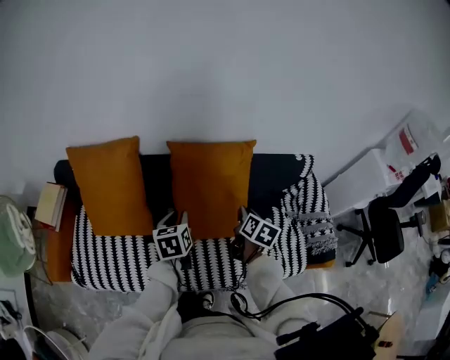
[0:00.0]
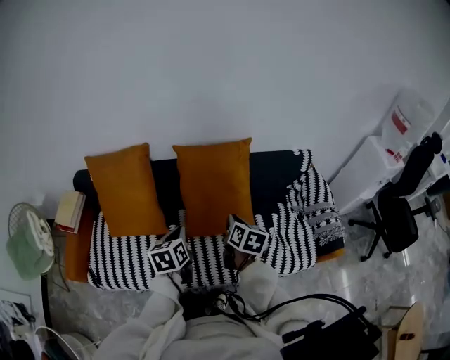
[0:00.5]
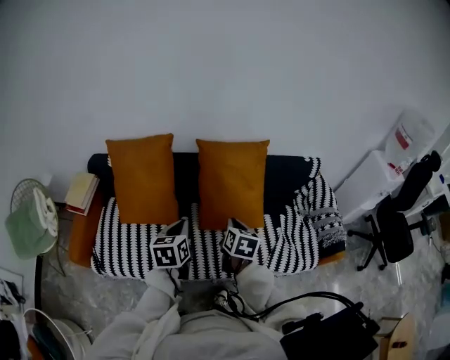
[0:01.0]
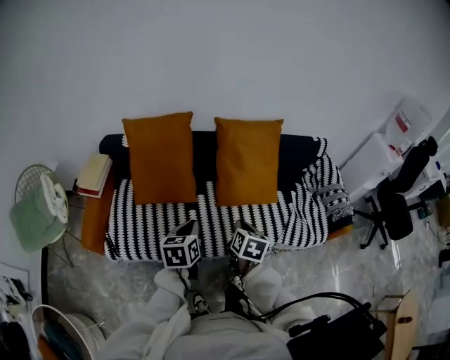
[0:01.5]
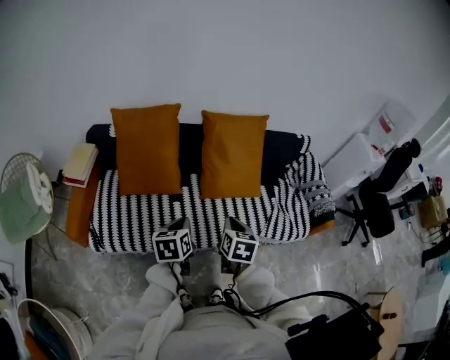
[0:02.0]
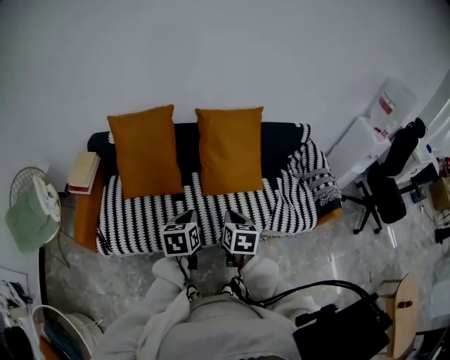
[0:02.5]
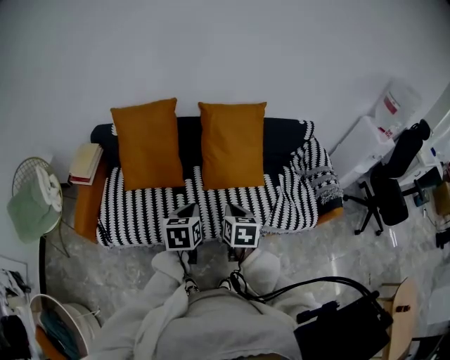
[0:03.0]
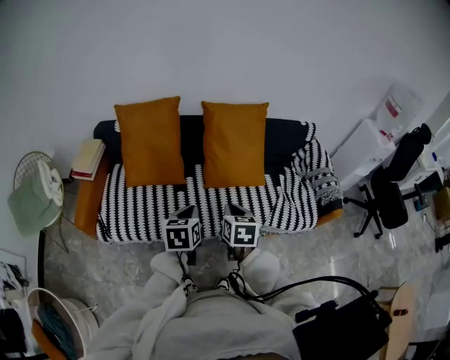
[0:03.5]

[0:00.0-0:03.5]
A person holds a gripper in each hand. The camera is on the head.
0:00.0 to 0:02.0: The right gripper heads backward and to the left, covering some 40 cm. Meanwhile the left gripper goes about 30 cm backward.
0:02.0 to 0:03.5: The left gripper travels to the right by about 5 cm.

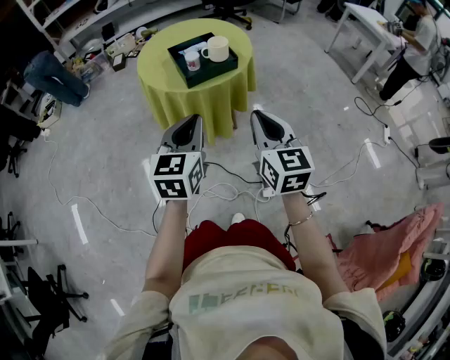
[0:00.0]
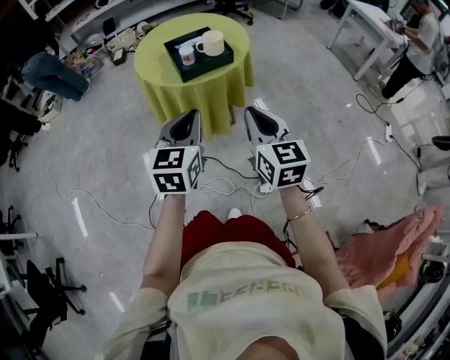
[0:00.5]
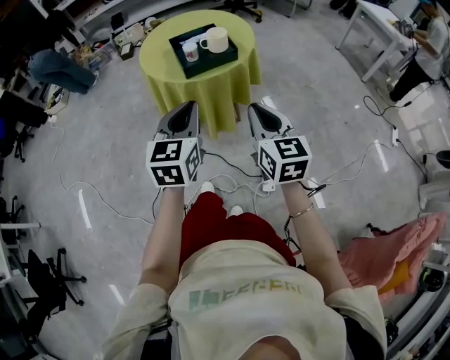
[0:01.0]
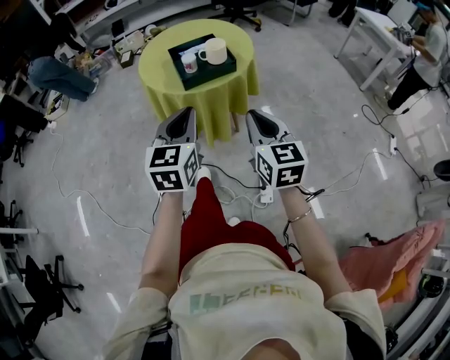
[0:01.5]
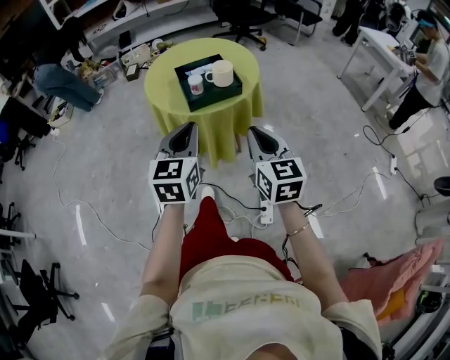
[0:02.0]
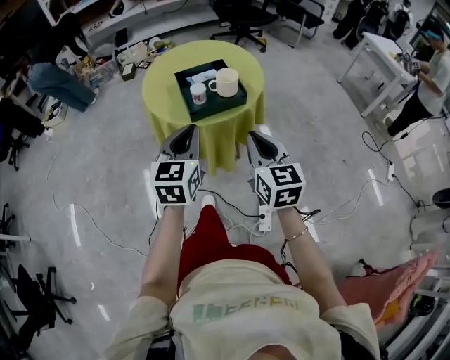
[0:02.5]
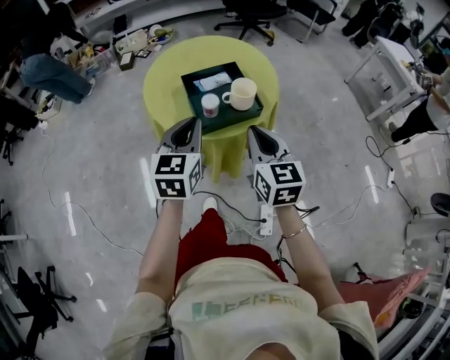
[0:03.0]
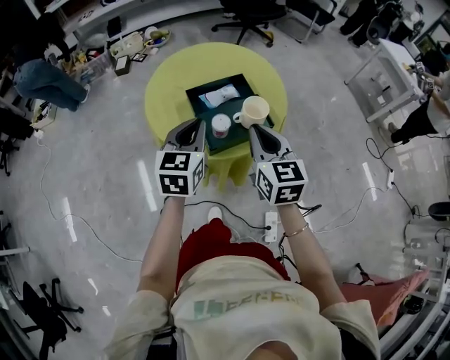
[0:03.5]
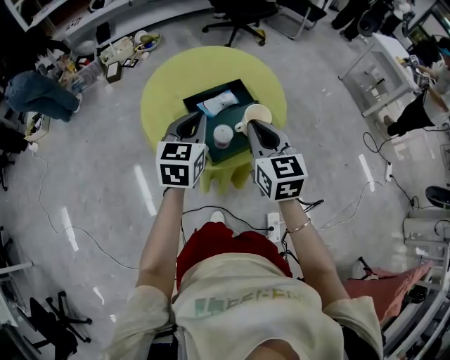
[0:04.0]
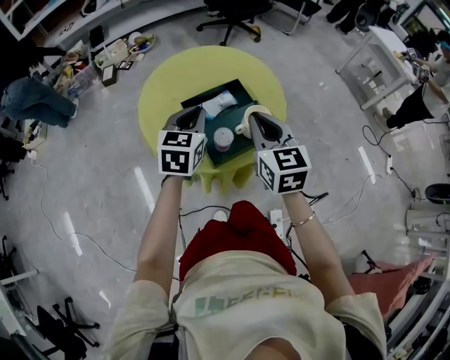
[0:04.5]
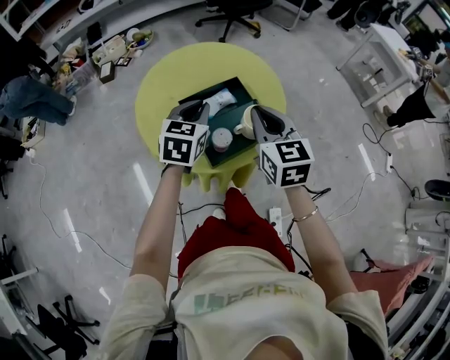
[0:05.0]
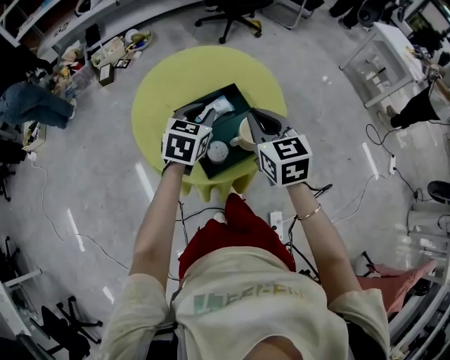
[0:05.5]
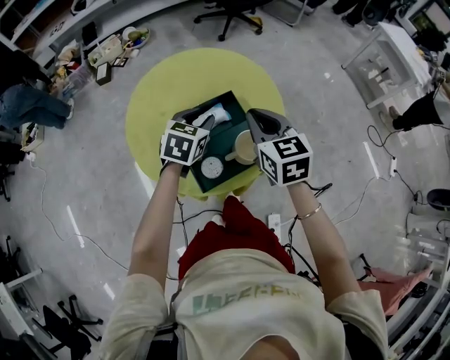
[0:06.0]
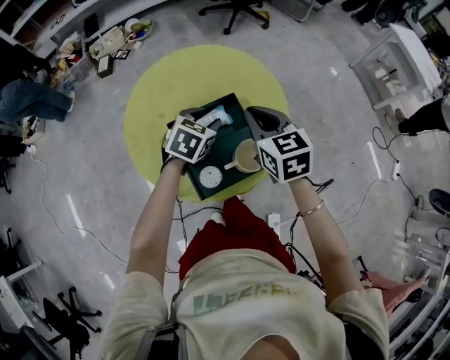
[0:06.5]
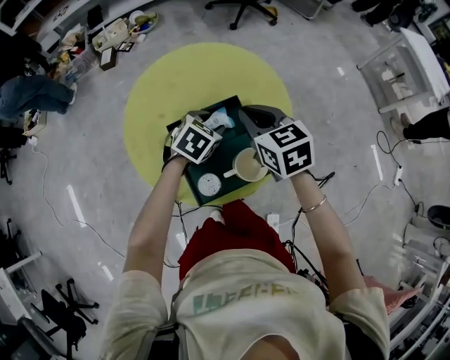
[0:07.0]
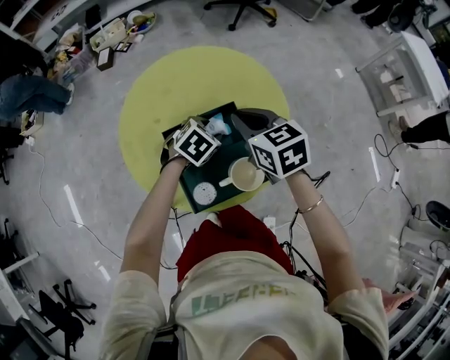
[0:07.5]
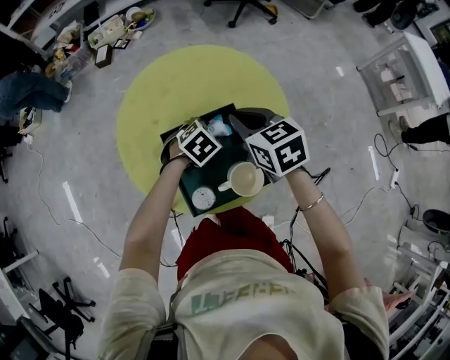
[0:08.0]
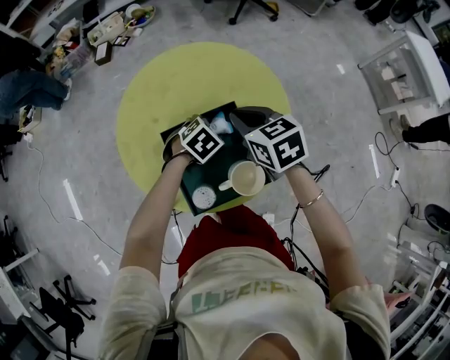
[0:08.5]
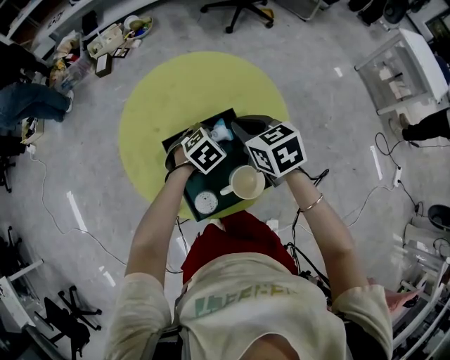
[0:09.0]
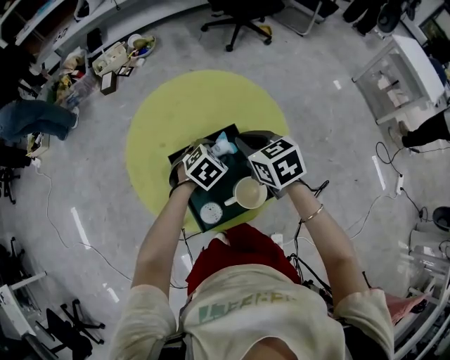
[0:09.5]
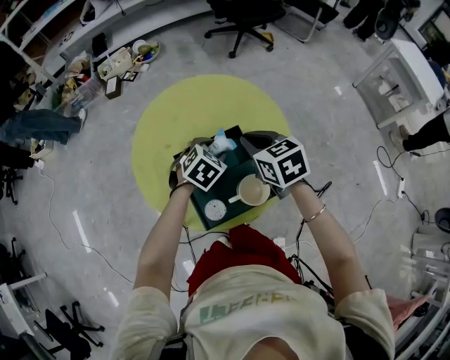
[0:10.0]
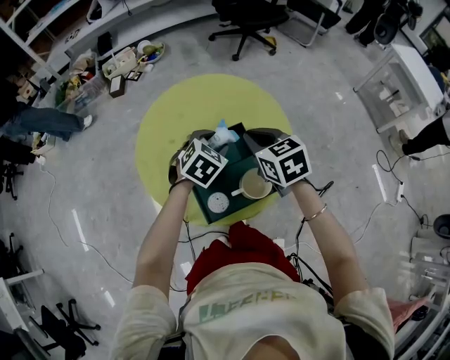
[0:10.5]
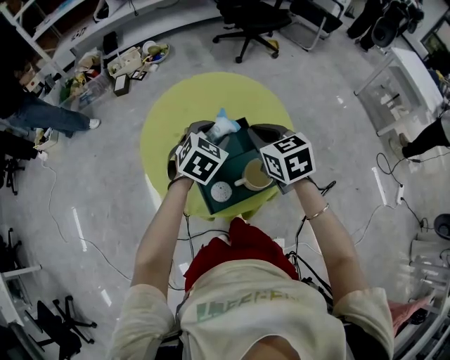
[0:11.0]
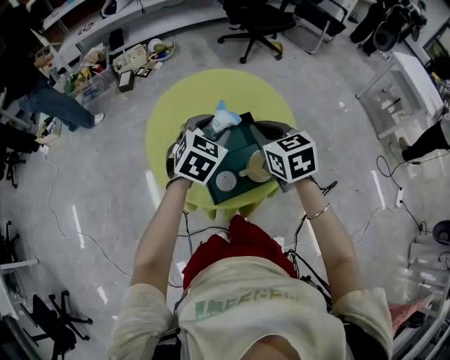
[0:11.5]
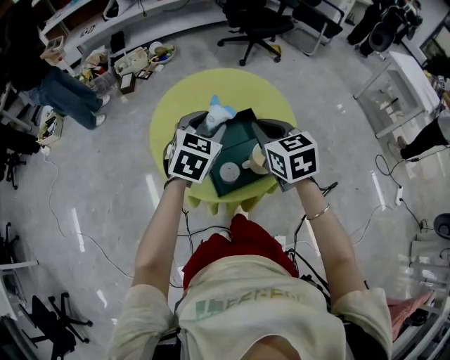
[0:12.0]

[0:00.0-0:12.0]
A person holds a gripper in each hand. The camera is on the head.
0:00.0 to 0:02.0: The grippers both shift forward by about 5 cm.
0:02.0 to 0:04.0: The grippers both shift forward by roughly 40 cm.
0:04.0 to 0:06.0: The left gripper moves forward and downward, approximately 20 cm, swivels roughly 20 degrees, and opens. The right gripper goes roughly 15 cm forward.
0:06.0 to 0:08.0: The right gripper goes about 15 cm forward and downward, and changes its angle by roughly 20 degrees. The left gripper goes roughly 15 cm downward and forward, changes its angle by some 30 degrees, and opens.
0:08.0 to 0:10.0: The left gripper moves upward, some 5 cm.
0:10.0 to 0:12.0: The right gripper is displaced backward and upward by roughly 15 cm; the left gripper goes approximately 20 cm upward, backward and to the left, and changes its angle by about 30 degrees.

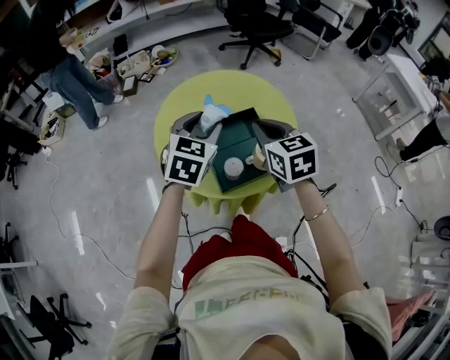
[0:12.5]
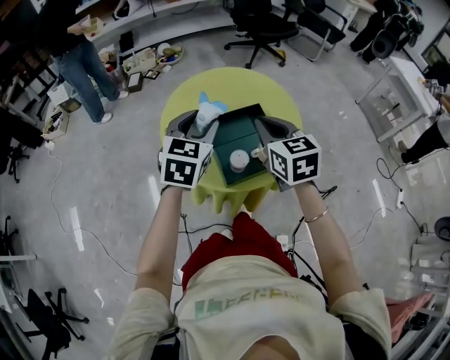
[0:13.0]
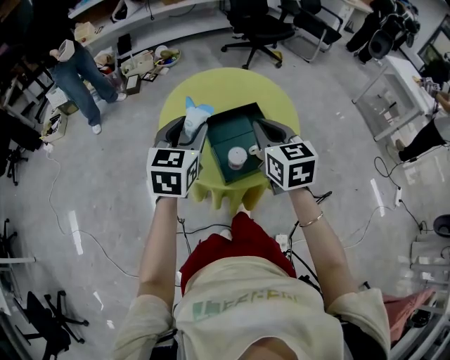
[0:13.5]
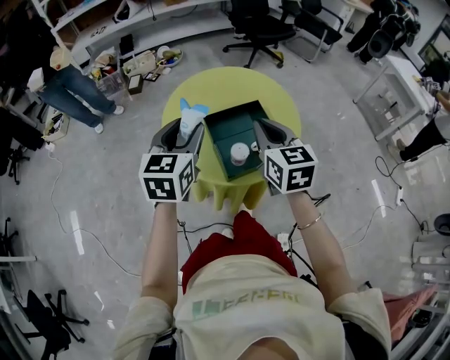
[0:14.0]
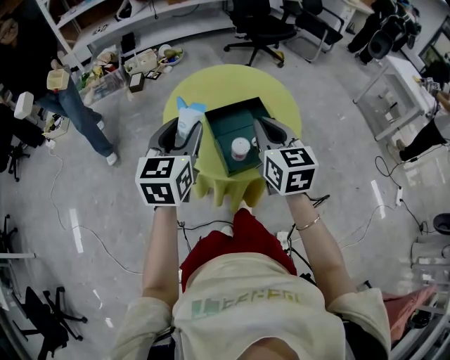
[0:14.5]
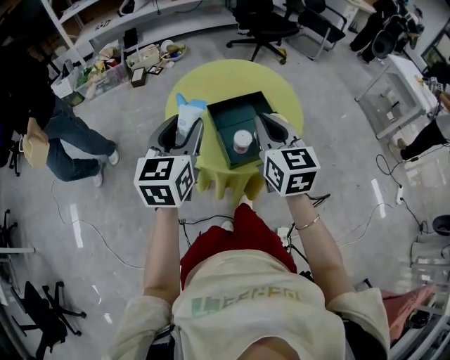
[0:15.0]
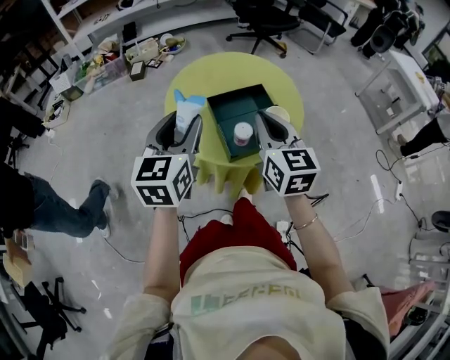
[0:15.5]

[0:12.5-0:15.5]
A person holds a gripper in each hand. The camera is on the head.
0:12.5 to 0:14.0: The right gripper heads backward, covering some 5 cm. Meanwhile the left gripper goes roughly 10 cm backward and to the left.
0:14.0 to 0:15.5: Both grippers move backward, about 5 cm.

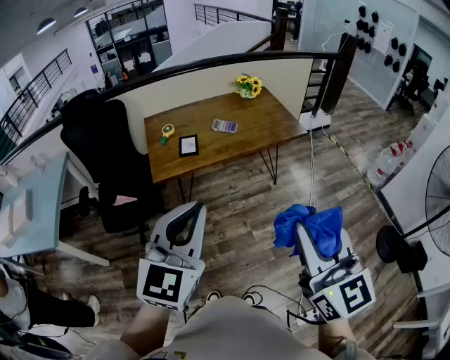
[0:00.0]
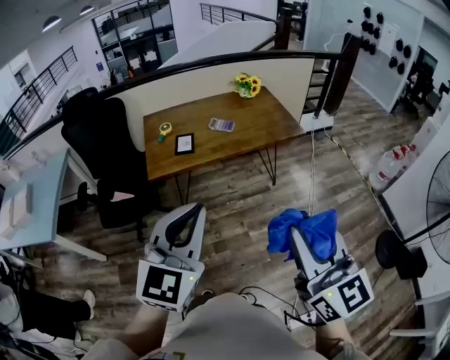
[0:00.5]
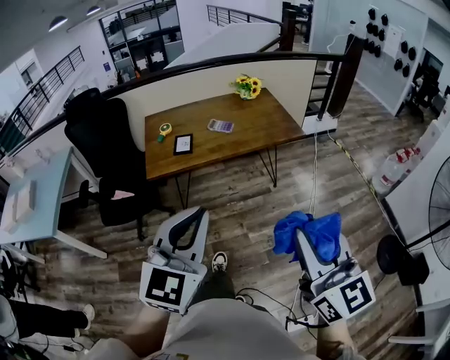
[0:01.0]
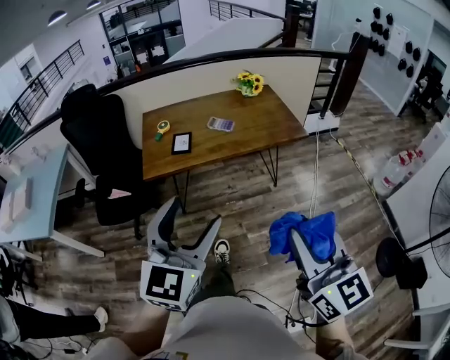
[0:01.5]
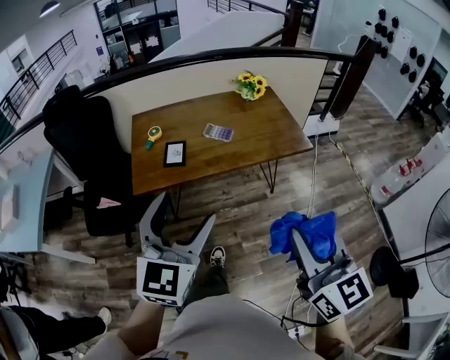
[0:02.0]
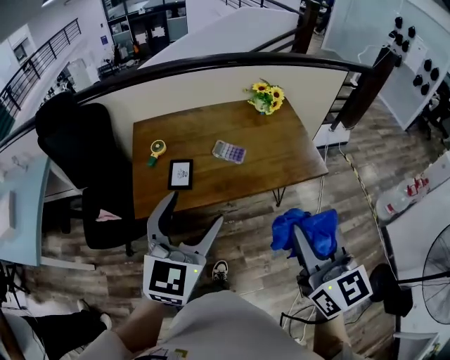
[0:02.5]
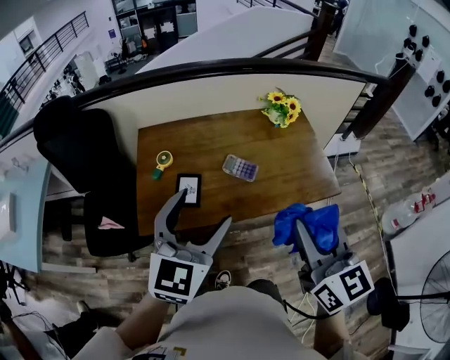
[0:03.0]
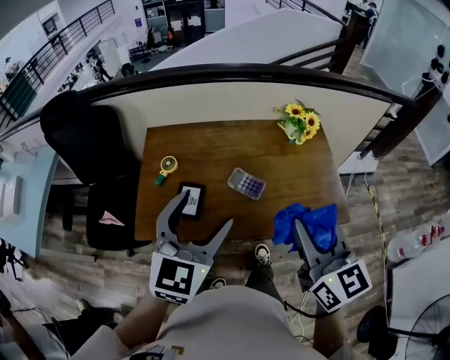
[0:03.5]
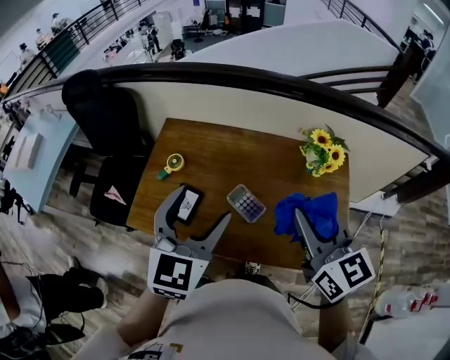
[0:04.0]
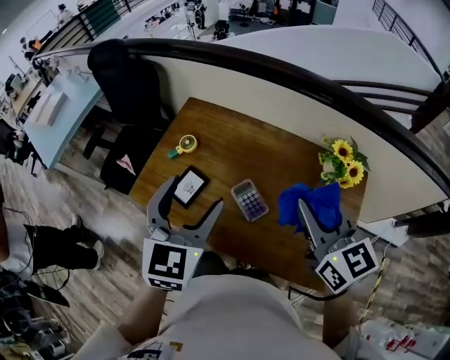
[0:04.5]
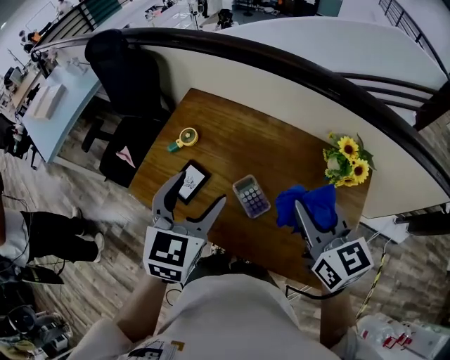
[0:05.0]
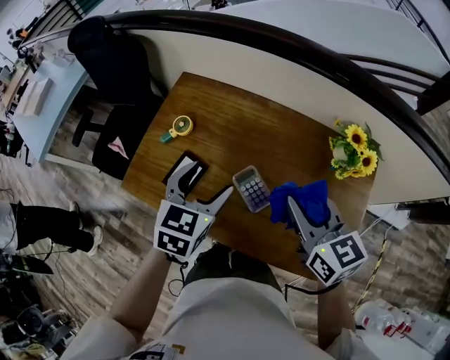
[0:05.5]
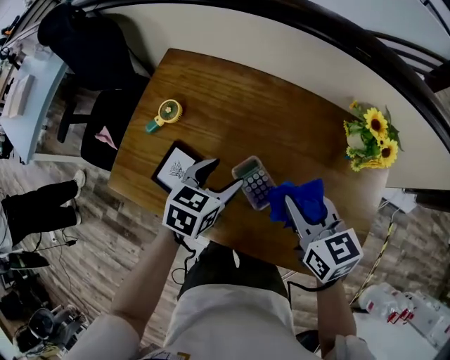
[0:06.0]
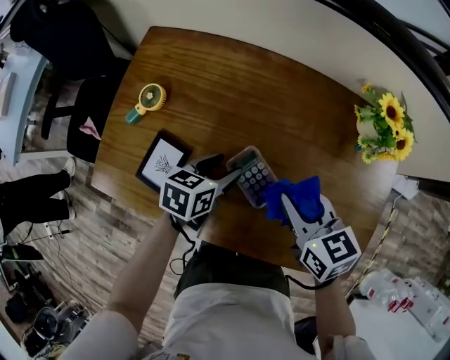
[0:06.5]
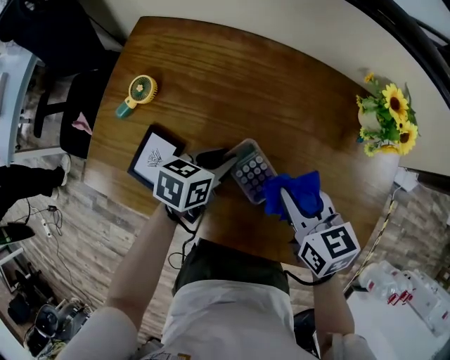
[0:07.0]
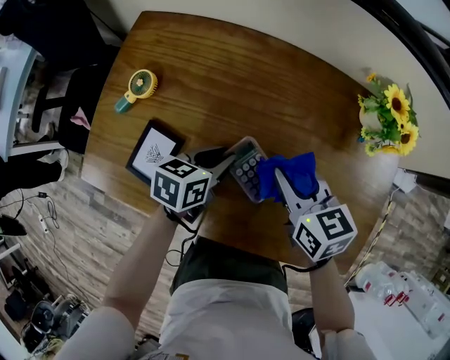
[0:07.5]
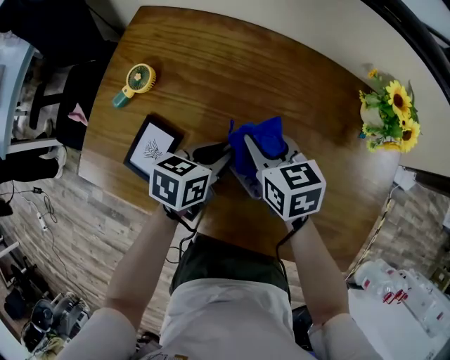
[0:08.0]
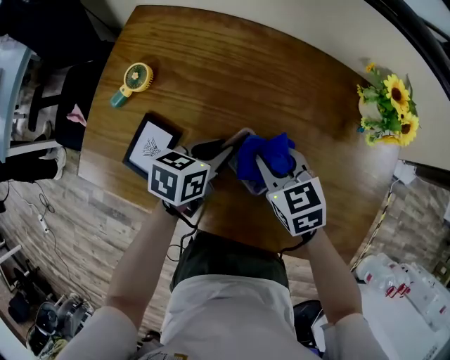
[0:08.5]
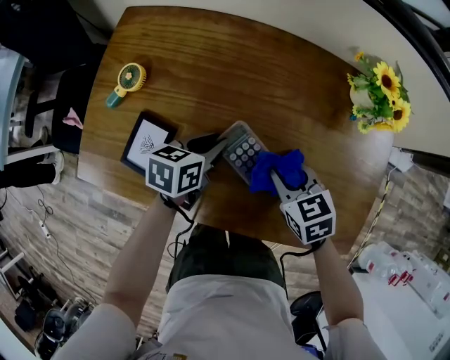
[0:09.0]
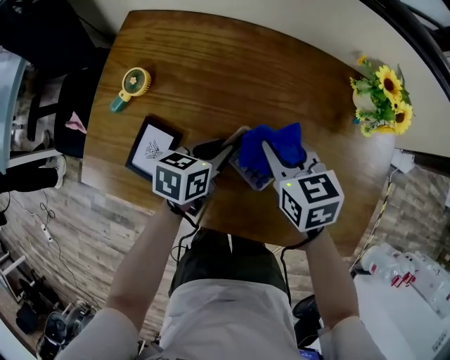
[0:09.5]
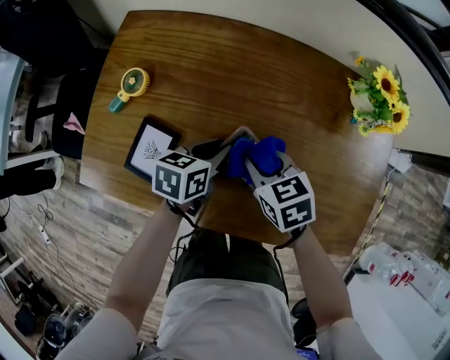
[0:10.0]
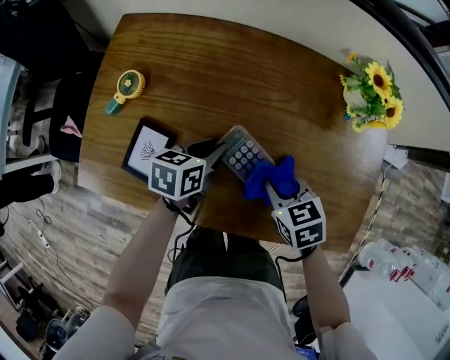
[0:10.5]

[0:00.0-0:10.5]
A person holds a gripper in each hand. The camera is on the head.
0:00.0 to 0:02.0: The right gripper moves forward, to the right and downward, approximately 20 cm; the left gripper travels forward by about 20 cm, and opens its fingers.
0:02.0 to 0:04.0: The two grippers travel together, roughly 50 cm. The left gripper swivels approximately 20 degrees. The right gripper rotates approximately 30 degrees.
0:04.0 to 0:06.5: The grippers both shift downward by some 35 cm. The right gripper swivels some 30 degrees, while the left gripper swivels roughly 50 degrees.
0:06.5 to 0:08.5: The left gripper closes. Meanwhile the right gripper travels downward by some 10 cm.
0:08.5 to 0:10.5: The right gripper goes forward and backward, about 10 cm each way, reversing 2 times.
